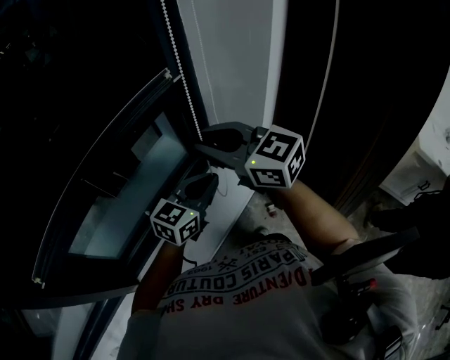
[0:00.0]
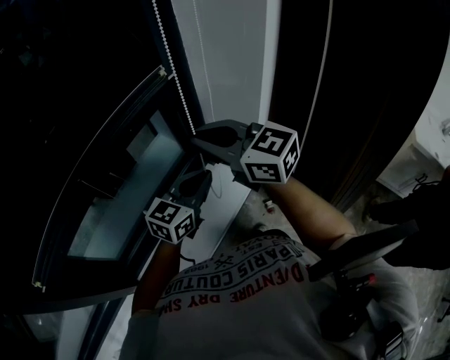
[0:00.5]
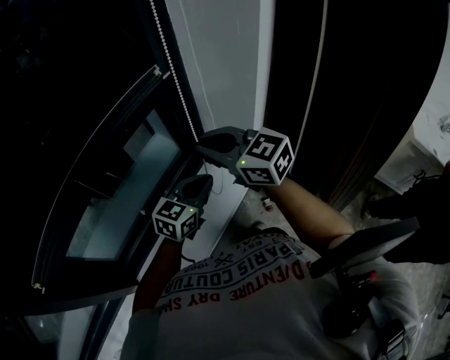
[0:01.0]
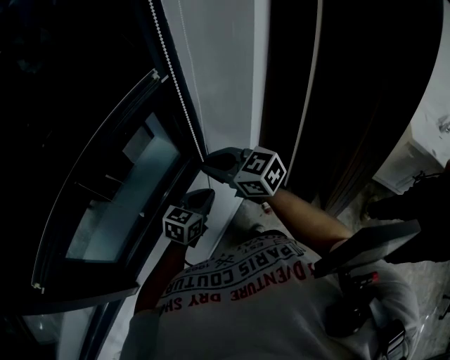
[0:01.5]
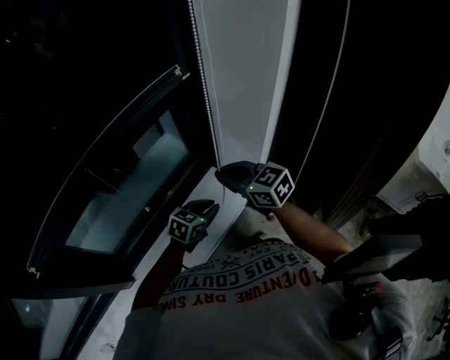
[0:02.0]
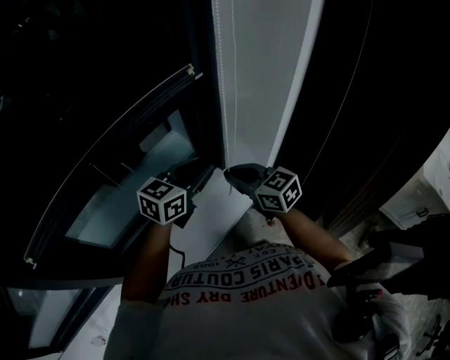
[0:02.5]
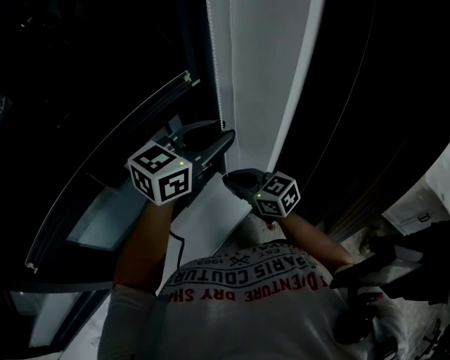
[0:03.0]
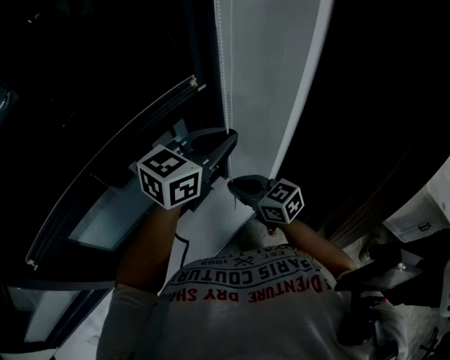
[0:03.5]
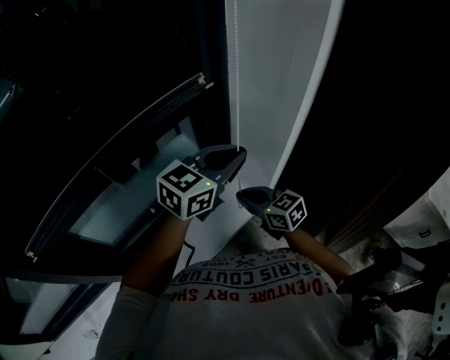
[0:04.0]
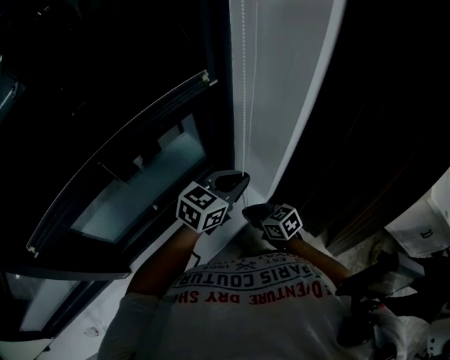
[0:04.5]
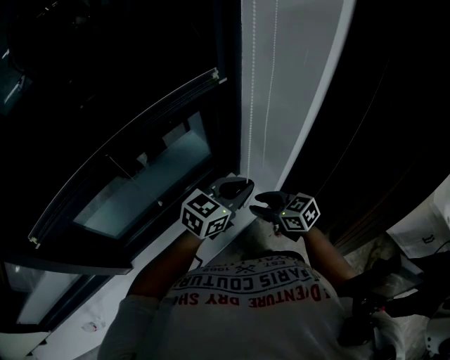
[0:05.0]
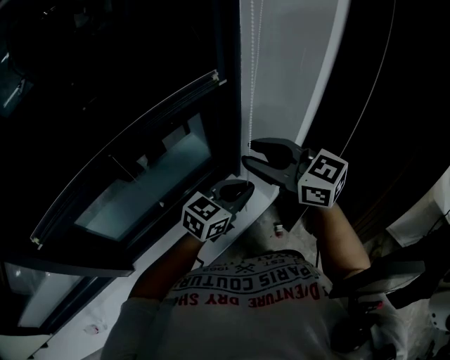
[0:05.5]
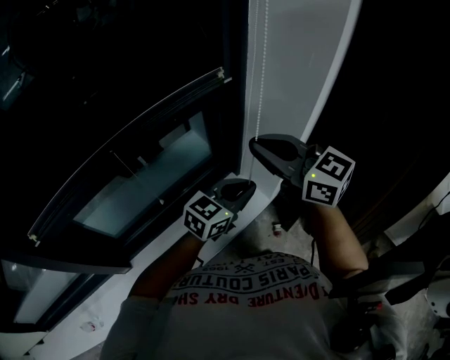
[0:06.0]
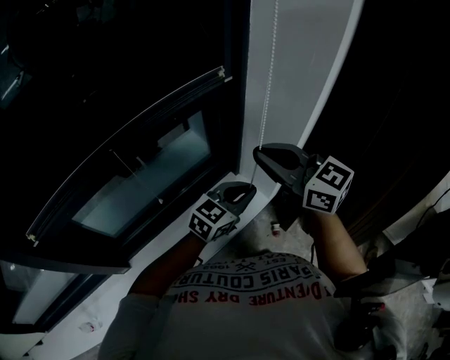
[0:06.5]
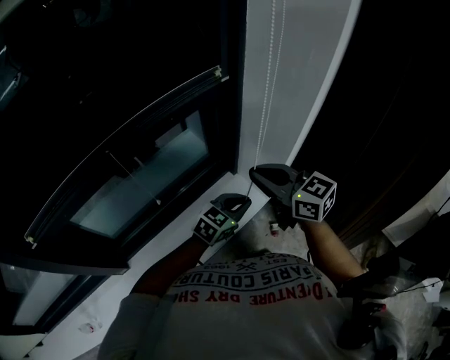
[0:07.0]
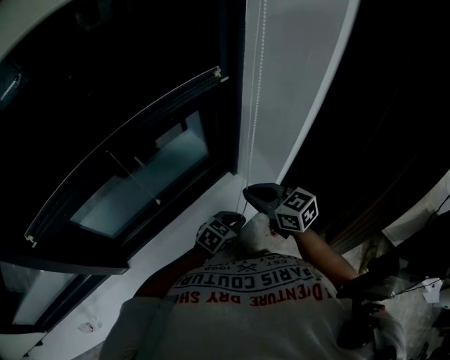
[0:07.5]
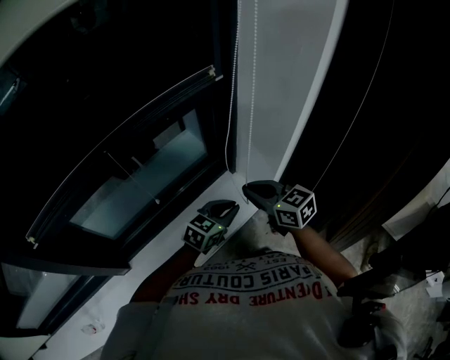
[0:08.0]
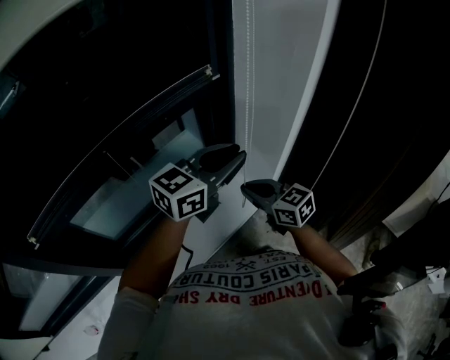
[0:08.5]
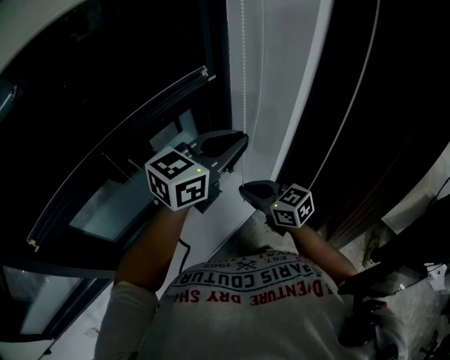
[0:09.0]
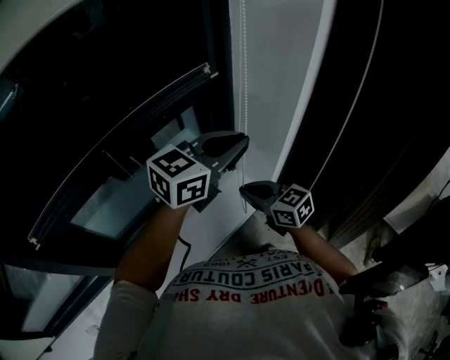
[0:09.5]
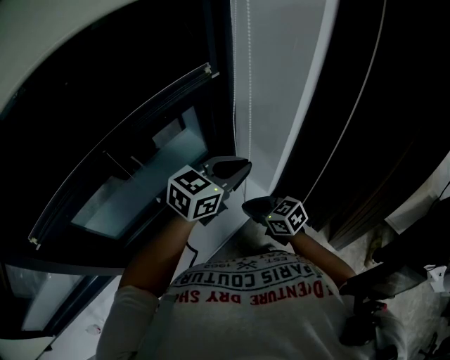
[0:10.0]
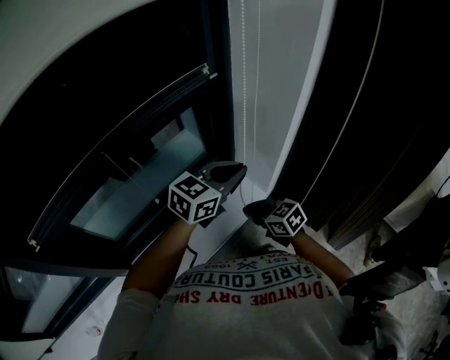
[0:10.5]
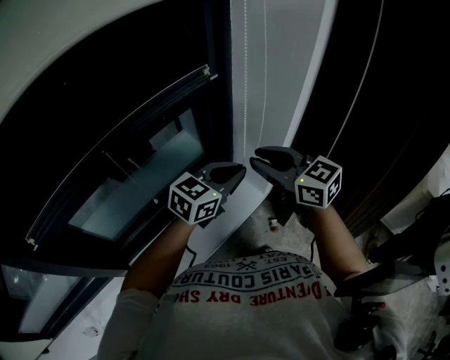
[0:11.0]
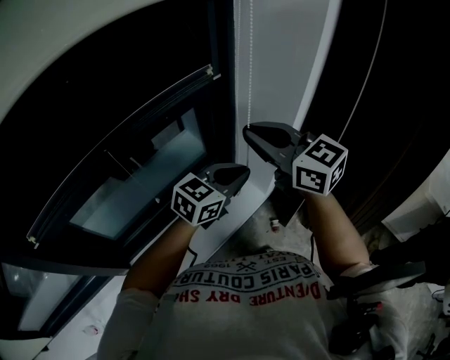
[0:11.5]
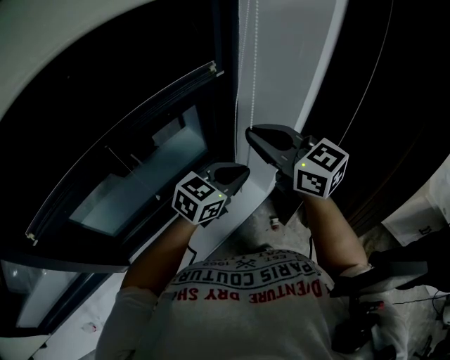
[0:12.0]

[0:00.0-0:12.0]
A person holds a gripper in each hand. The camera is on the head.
0.0 to 2.0 s: The grippers both shift downward by roughly 15 cm. The left gripper turns by about 20 degrees.
2.0 to 4.0 s: The left gripper moves upward, about 25 cm, and turns by approximately 30 degrees. Meanwhile the right gripper is displaced downward by some 5 cm.
4.0 to 6.0 s: The left gripper shifts about 10 cm downward and backward; the right gripper moves upward, about 25 cm, swivels about 20 degrees, and opens, then closes once more.
6.0 to 8.0 s: The right gripper shifts roughly 20 cm downward, while the left gripper travels downward by some 10 cm.
8.0 to 10.0 s: The right gripper shifts some 10 cm downward. Meanwhile the left gripper moves upward, some 20 cm.
10.0 to 12.0 s: The right gripper heads upward, covering roughly 30 cm, changes its angle by approximately 30 degrees, and opens and closes again.

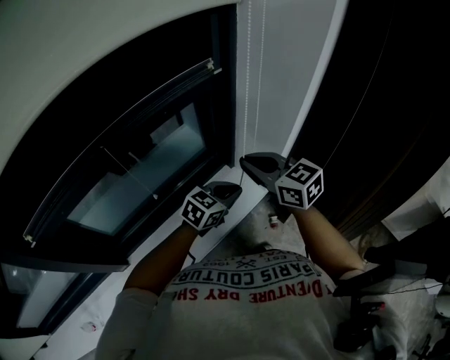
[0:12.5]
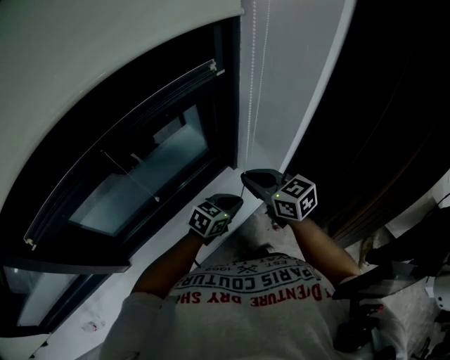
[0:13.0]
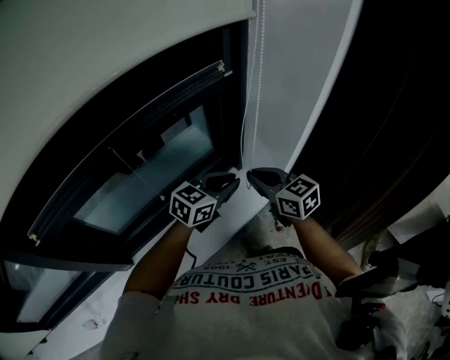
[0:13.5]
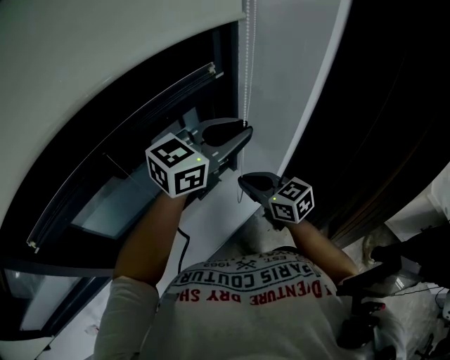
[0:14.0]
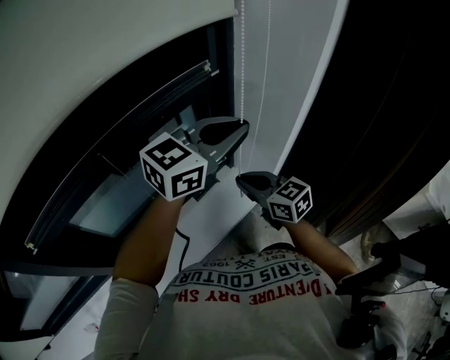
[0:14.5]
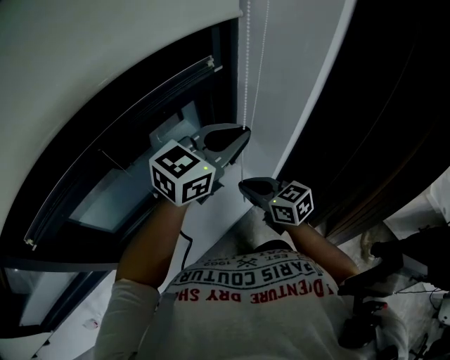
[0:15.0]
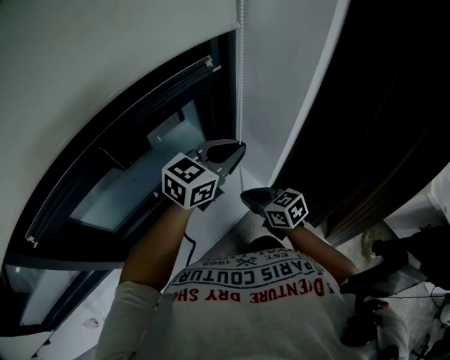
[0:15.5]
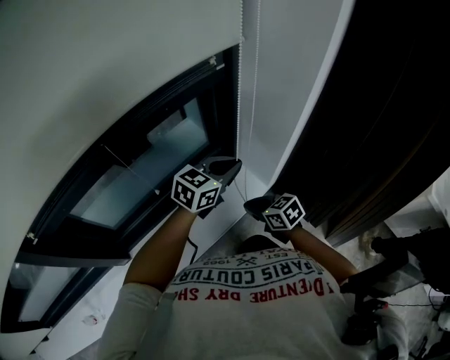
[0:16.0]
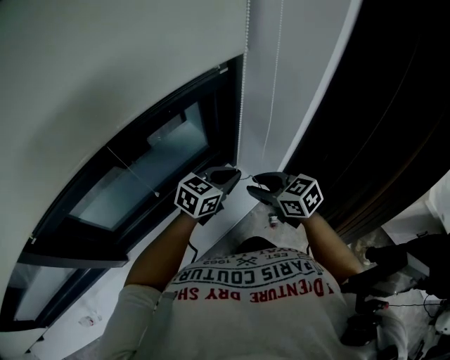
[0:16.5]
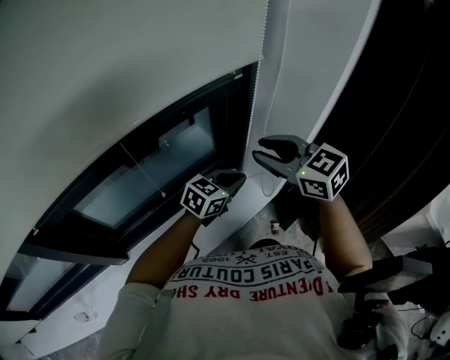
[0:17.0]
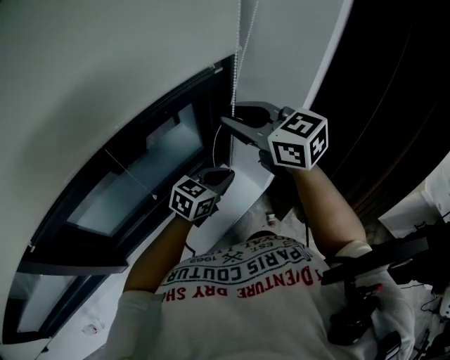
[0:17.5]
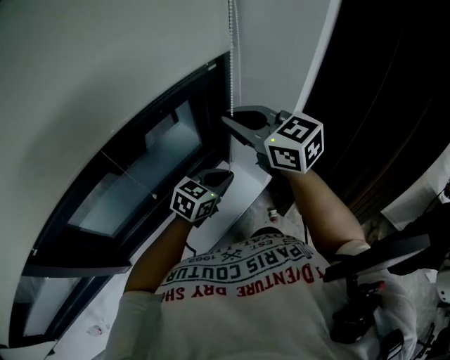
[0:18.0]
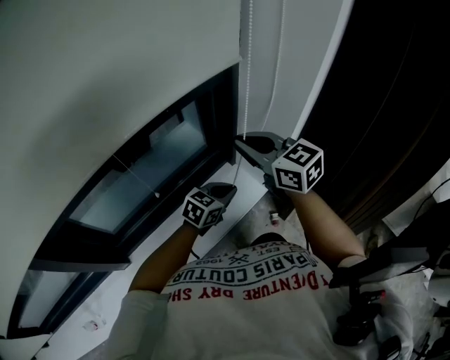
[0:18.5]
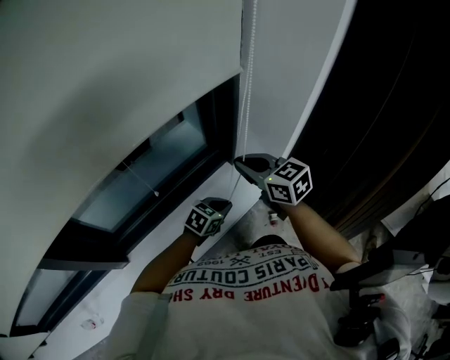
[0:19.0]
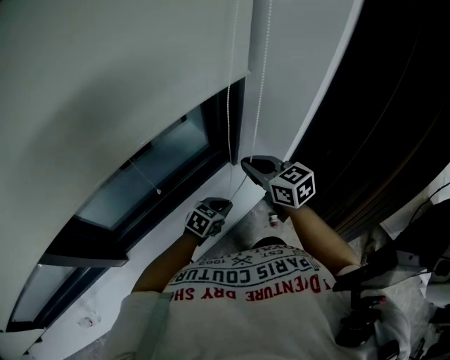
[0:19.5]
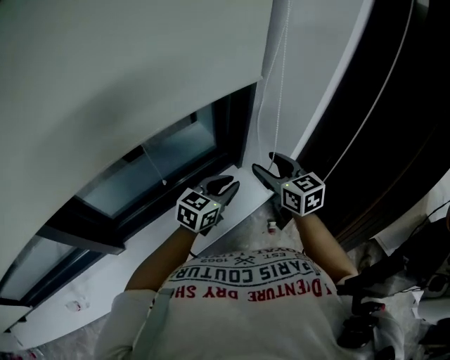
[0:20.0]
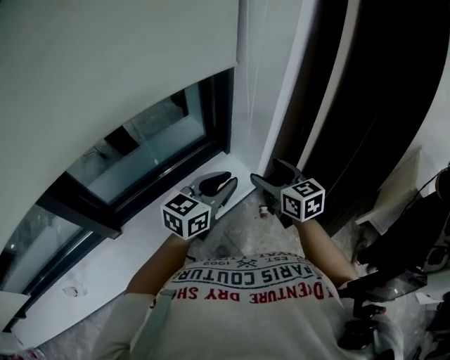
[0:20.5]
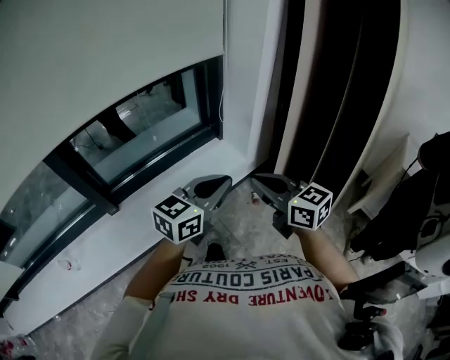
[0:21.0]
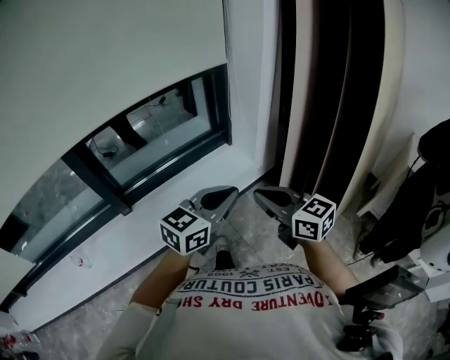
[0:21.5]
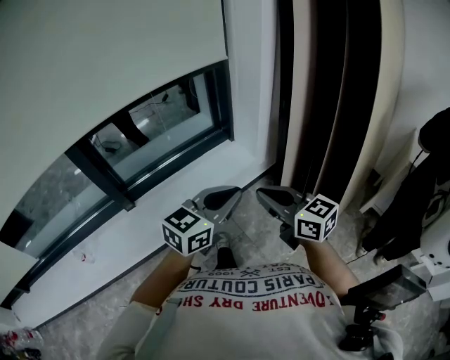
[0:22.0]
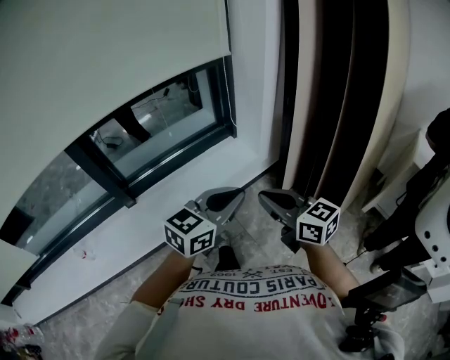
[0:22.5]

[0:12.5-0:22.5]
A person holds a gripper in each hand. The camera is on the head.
12.5 to 14.5 s: The left gripper shifts about 25 cm upward, and rotates about 30 degrees. The right gripper heads downward, covering roughly 5 cm.
14.5 to 16.5 s: The right gripper travels downward and back again, some 15 cm each way, and opens. Meanwhile the left gripper moves downward, approximately 20 cm, and changes its angle by some 20 degrees.
16.5 to 18.5 s: The left gripper moves downward, some 10 cm; the right gripper is displaced upward and forward by some 15 cm, and closes.
18.5 to 20.5 s: The right gripper is displaced backward, to the right and downward by about 20 cm, and opens its fingers, while the left gripper heads upward and backward, covering some 25 cm, and changes its angle by about 20 degrees.
20.5 to 22.5 s: Both grippers travel together backward, roughly 30 cm. The right gripper swivels roughly 20 degrees, and closes its fingers.

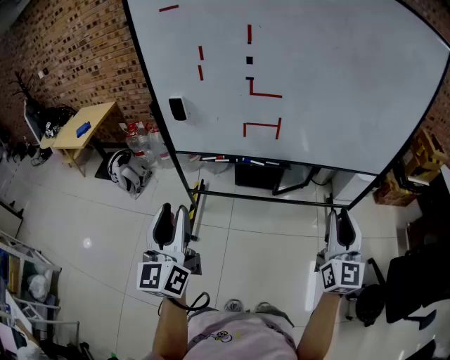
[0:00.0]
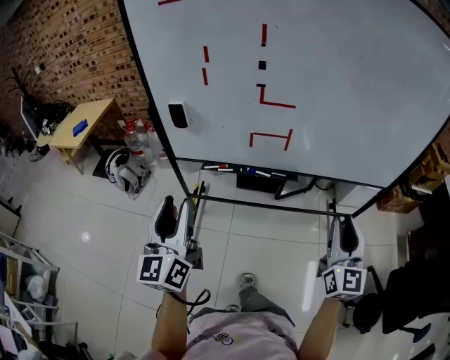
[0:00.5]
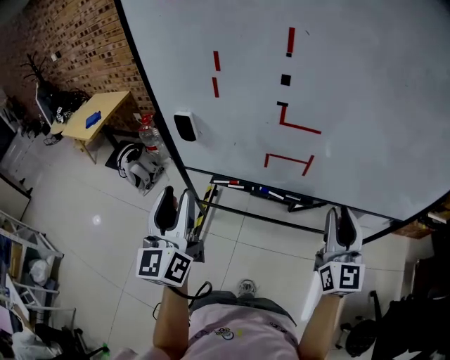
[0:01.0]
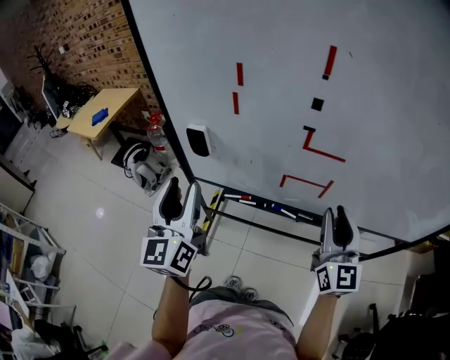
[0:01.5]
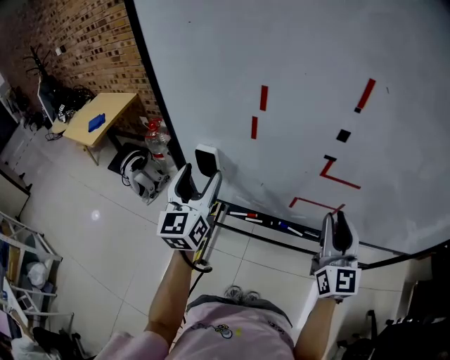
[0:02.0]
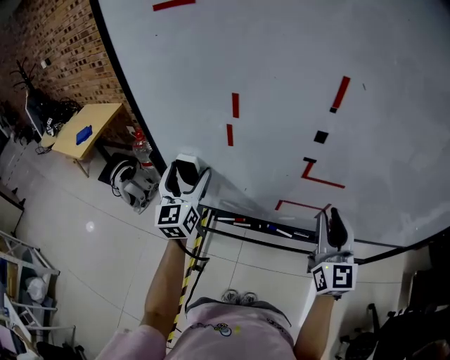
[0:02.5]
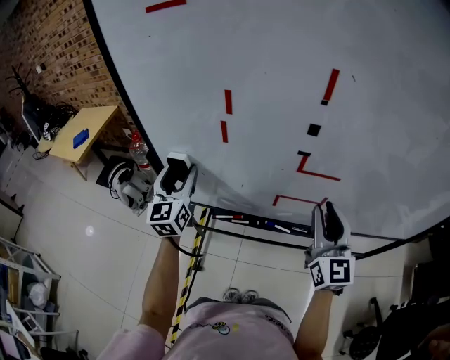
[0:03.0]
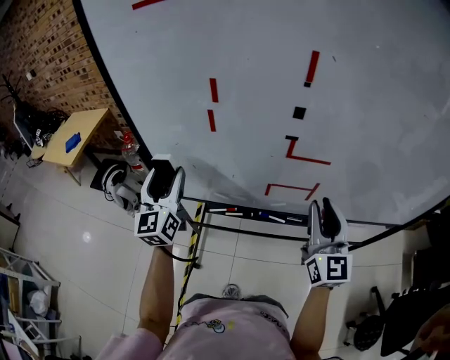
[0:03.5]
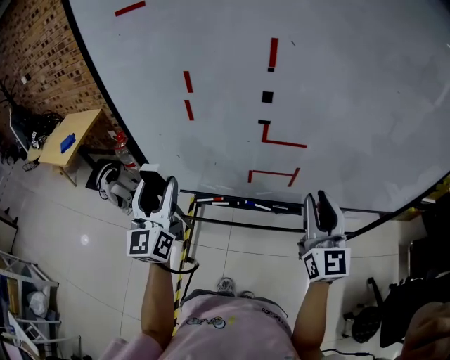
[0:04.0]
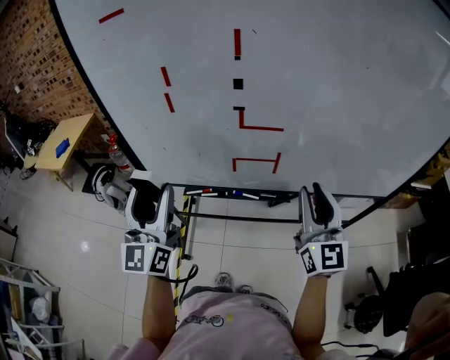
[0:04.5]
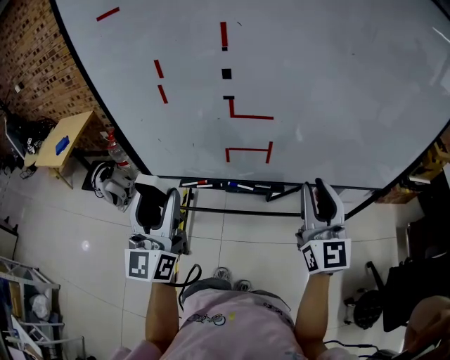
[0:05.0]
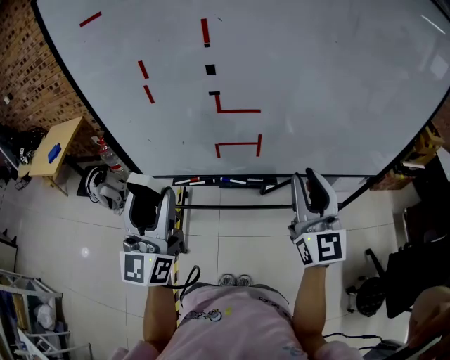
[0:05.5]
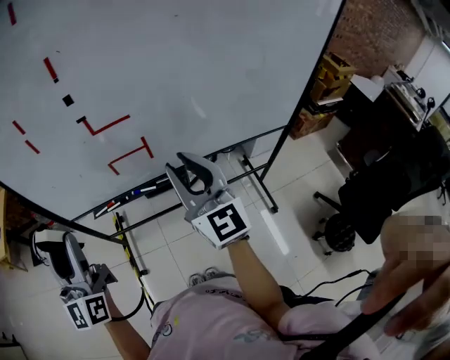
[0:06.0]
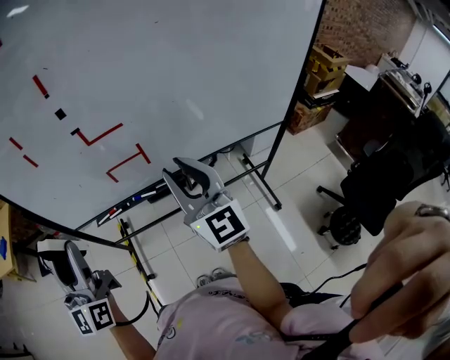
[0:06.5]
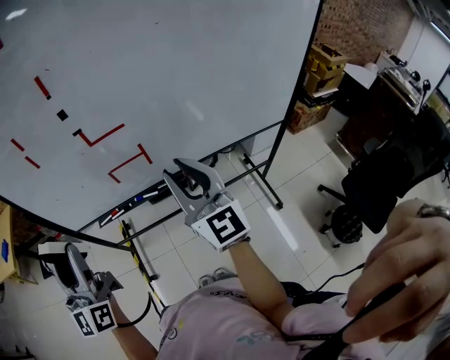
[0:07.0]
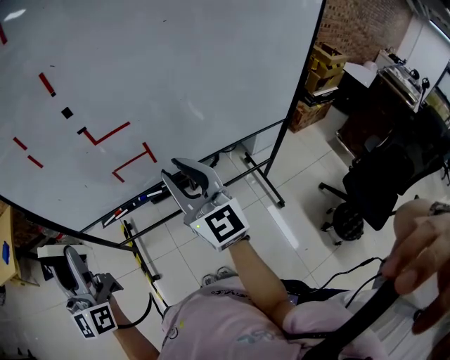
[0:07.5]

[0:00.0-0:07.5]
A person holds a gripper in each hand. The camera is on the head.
0.0 to 2.0 s: The grippers both shift forward by roughly 40 cm. The left gripper opens.
2.0 to 4.0 s: The right gripper goes roughly 10 cm backward and to the right; the left gripper shifts about 10 cm backward.
4.0 to 5.5 s: The right gripper shifts about 10 cm backward; the left gripper goes roughly 15 cm backward, to the right and upward.
5.5 to 7.5 s: The grippers move only a little.
